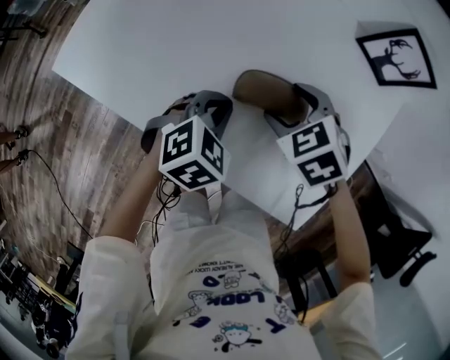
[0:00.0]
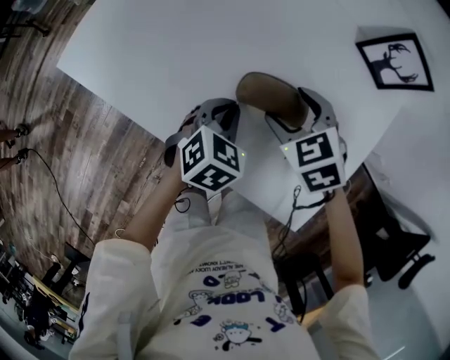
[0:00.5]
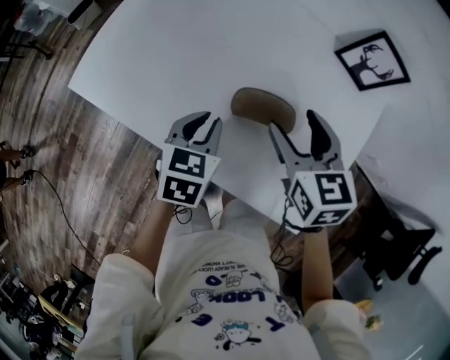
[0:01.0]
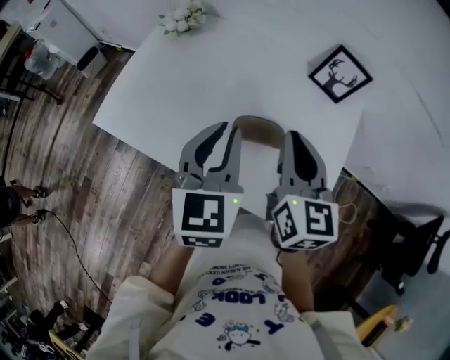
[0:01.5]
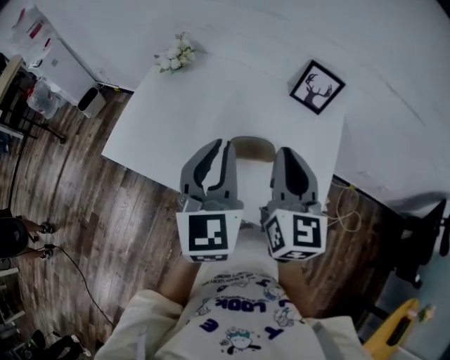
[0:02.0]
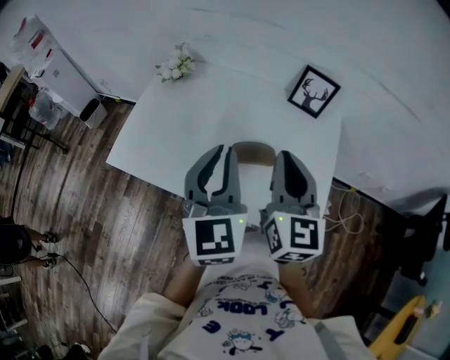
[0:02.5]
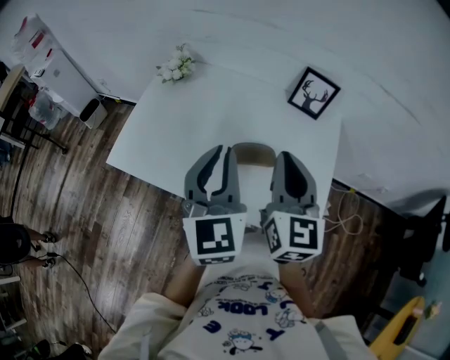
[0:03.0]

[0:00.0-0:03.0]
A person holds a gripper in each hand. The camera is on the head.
0:00.0 to 0:01.5: The two grippers go roughly 25 cm upward. The right gripper points its fingers roughly 50 degrees further upward, and closes its fingers. Meanwhile the left gripper points its fingers some 40 degrees further upward.
0:01.5 to 0:03.0: Both grippers move upward, roughly 5 cm.

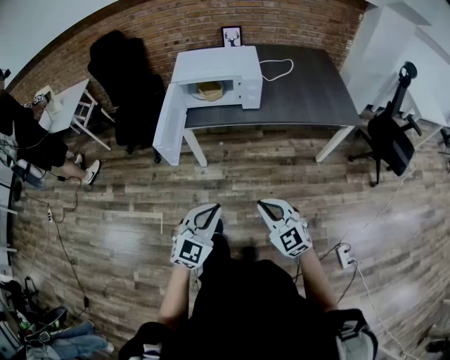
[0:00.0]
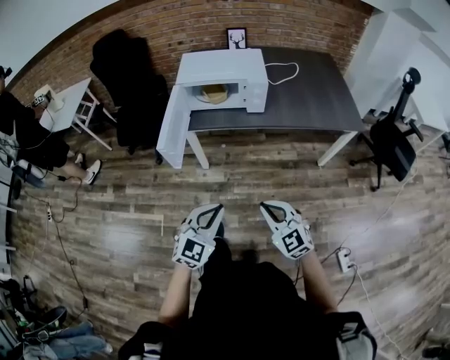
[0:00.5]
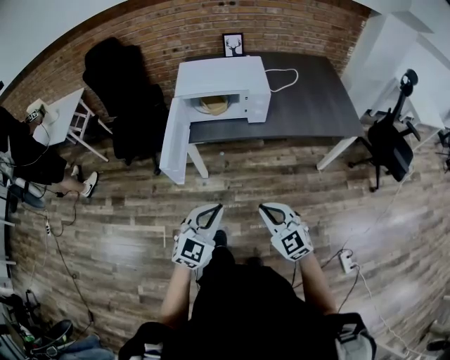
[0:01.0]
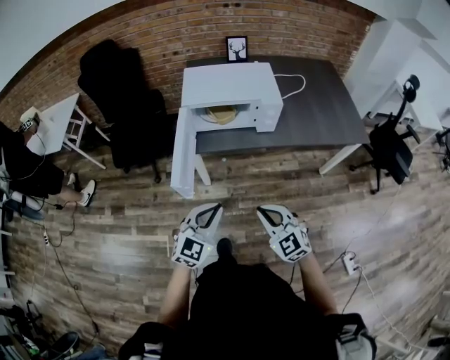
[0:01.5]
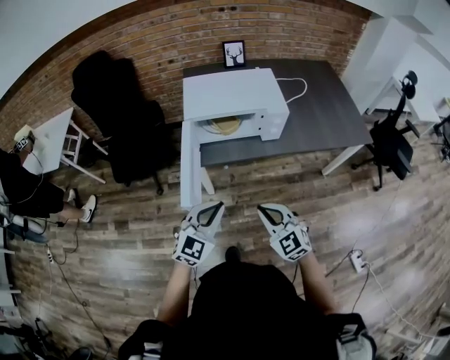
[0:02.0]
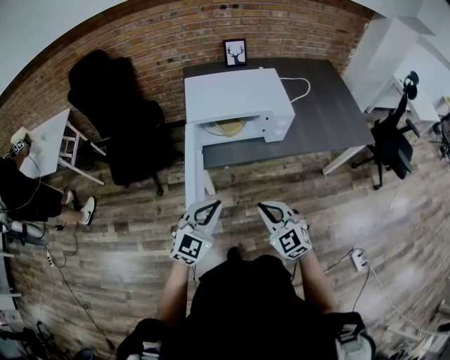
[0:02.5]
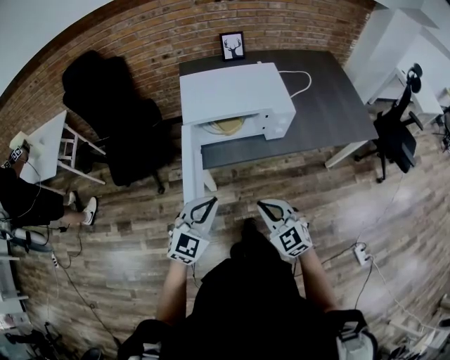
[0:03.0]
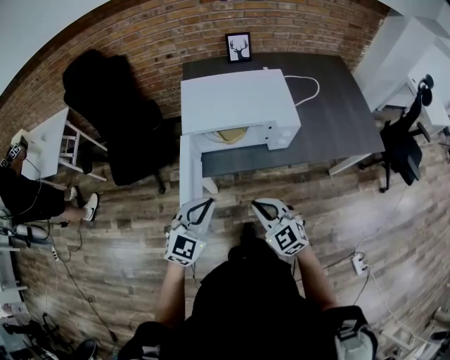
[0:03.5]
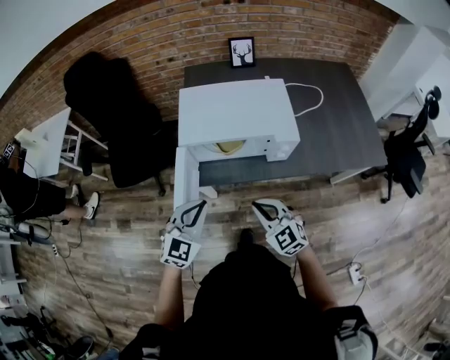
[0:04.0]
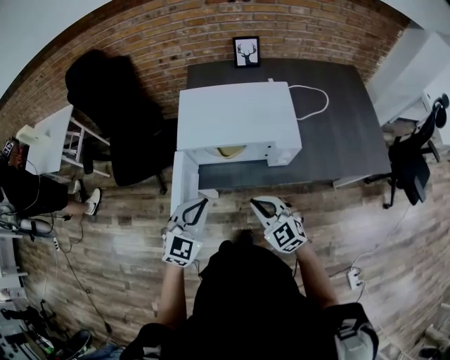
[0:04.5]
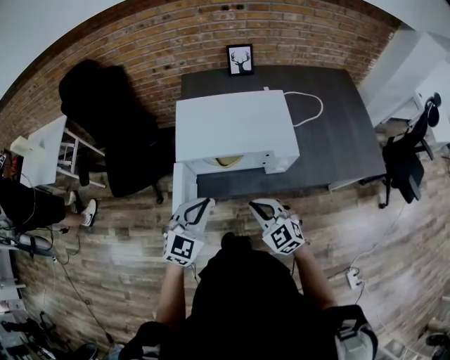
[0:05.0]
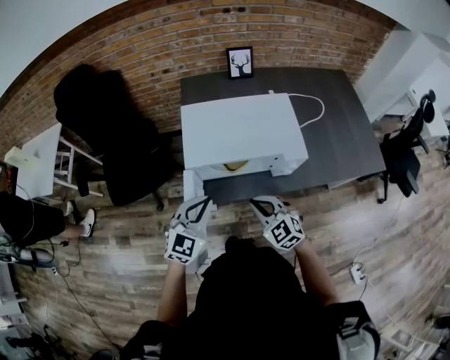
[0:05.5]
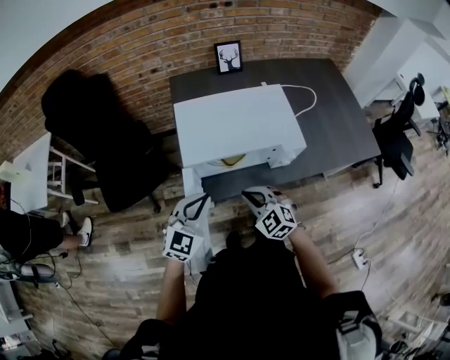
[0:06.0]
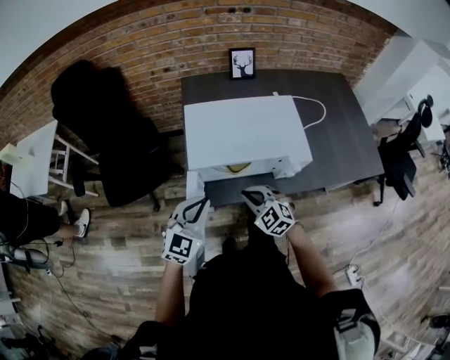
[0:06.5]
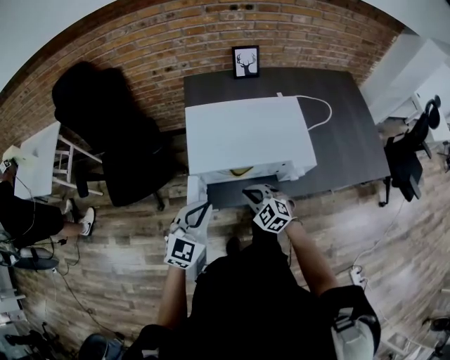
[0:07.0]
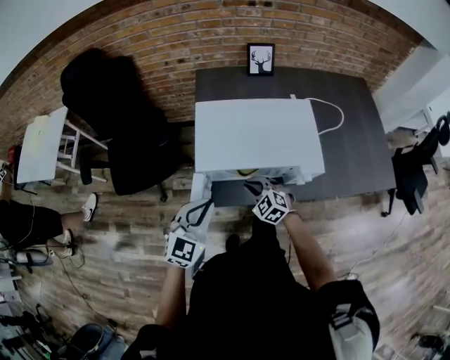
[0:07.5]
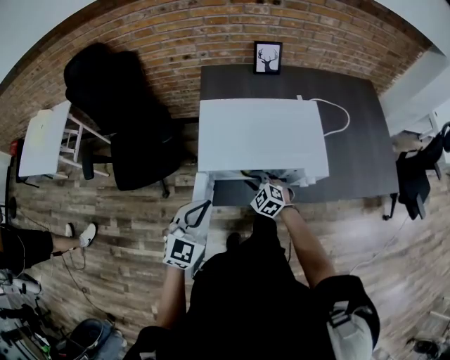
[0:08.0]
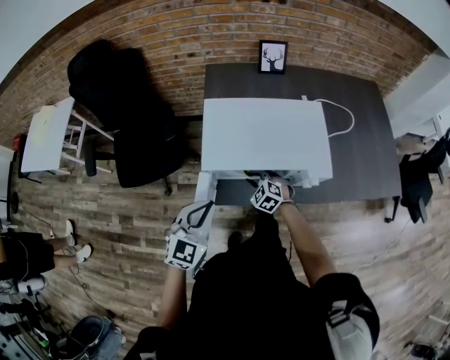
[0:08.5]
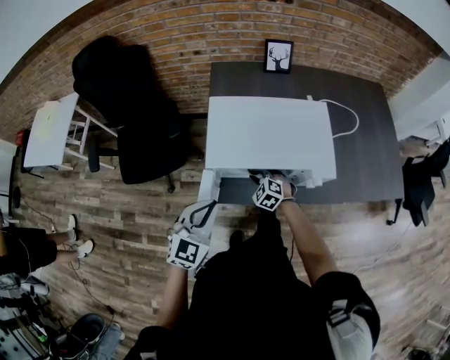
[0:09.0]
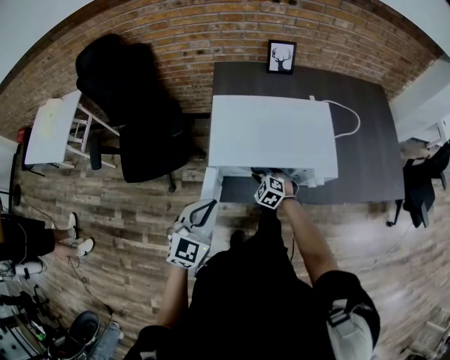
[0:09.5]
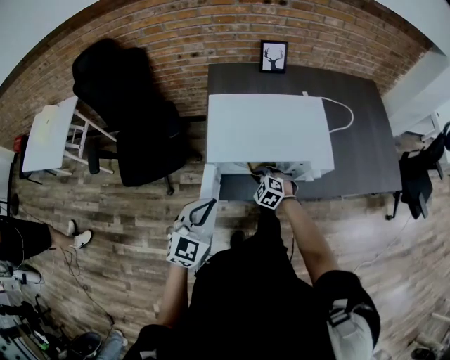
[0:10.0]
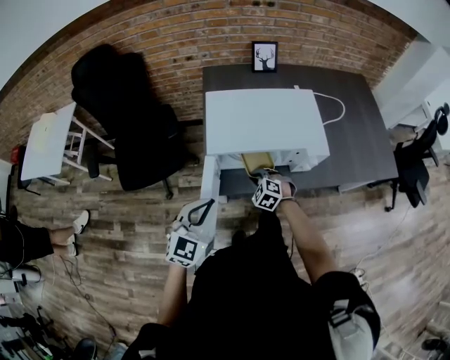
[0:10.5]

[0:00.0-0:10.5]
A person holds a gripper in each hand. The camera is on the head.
0:00.0 to 0:02.0: The grippers both shift forward and to the left by about 25 cm.
0:02.0 to 0:04.0: Both grippers travel together forward, roughly 15 cm.
0:04.0 to 0:06.5: The right gripper is displaced forward, to the left and downward by some 15 cm. Meanwhile the left gripper moves forward, approximately 10 cm.
0:06.5 to 0:08.5: The right gripper travels downward and forward by some 15 cm, and opens up.
0:08.5 to 0:10.5: Both grippers move backward, roughly 5 cm.

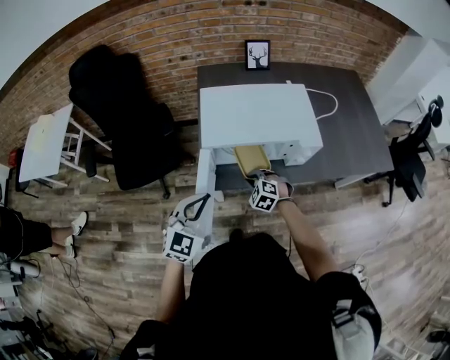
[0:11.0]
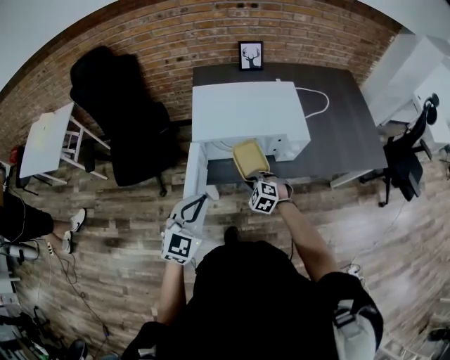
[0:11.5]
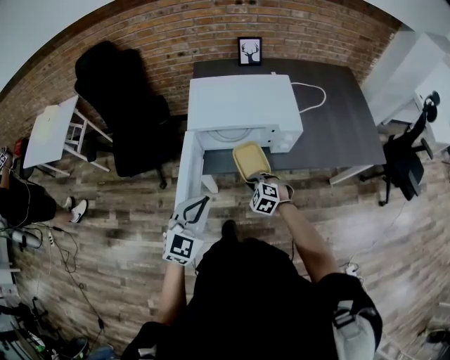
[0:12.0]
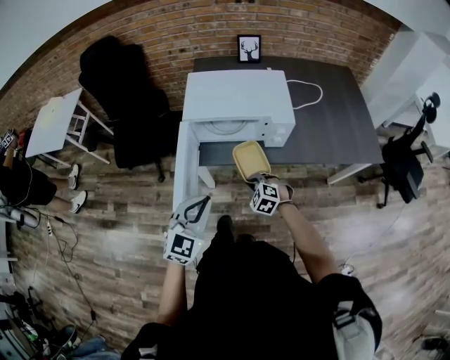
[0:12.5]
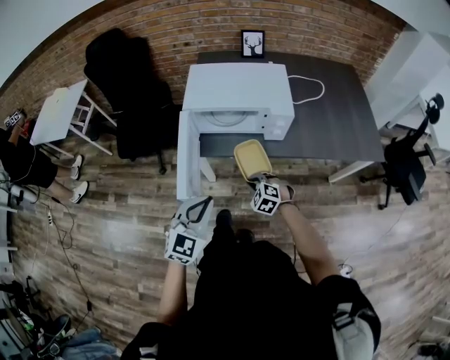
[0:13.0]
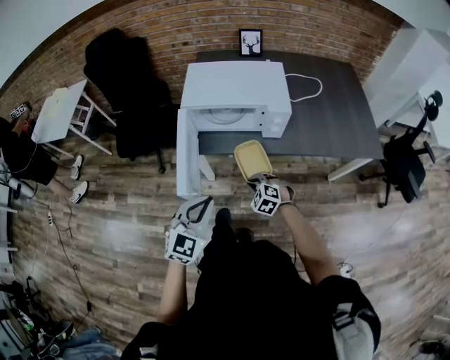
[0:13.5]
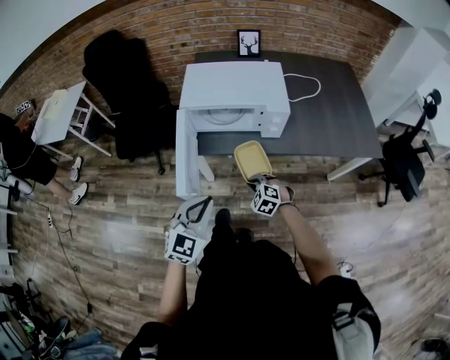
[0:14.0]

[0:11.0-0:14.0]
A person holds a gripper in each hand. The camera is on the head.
0:11.0 to 0:12.5: The grippers both shift backward and to the right by roughly 15 cm.
0:12.5 to 0:14.0: The grippers both shift backward by about 5 cm.

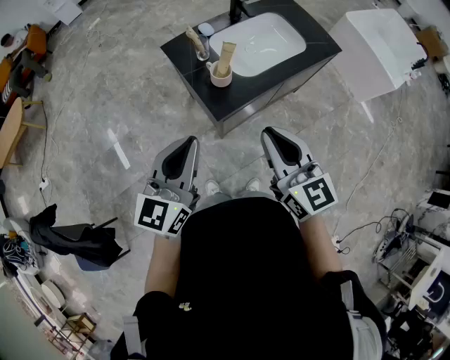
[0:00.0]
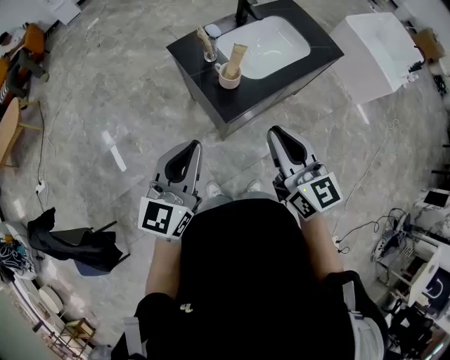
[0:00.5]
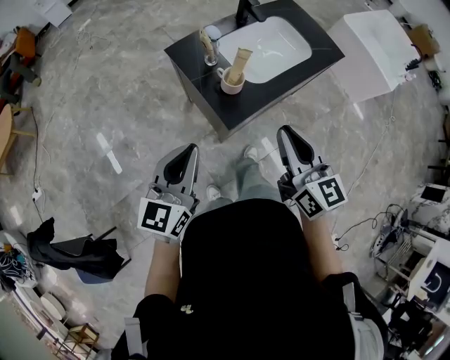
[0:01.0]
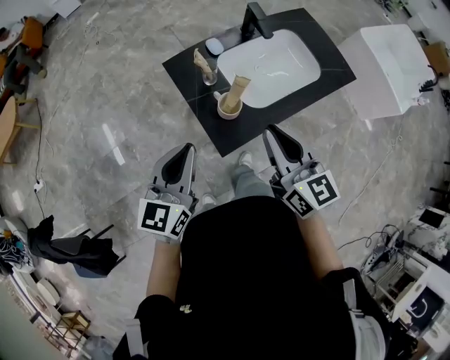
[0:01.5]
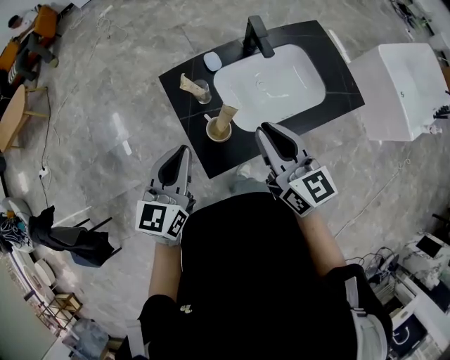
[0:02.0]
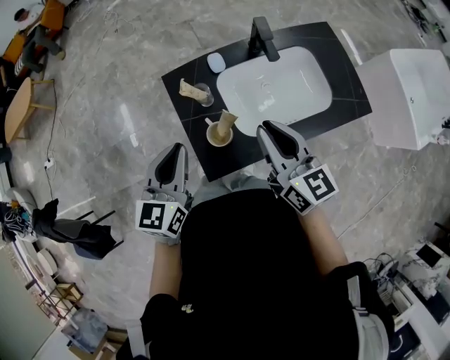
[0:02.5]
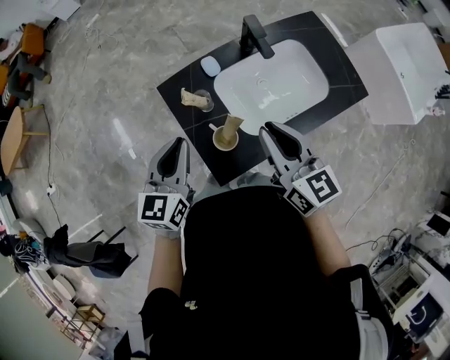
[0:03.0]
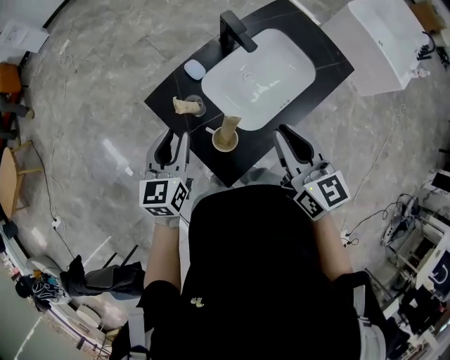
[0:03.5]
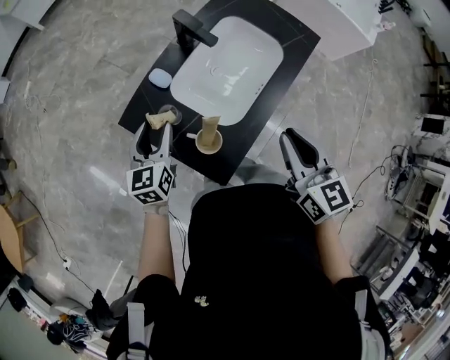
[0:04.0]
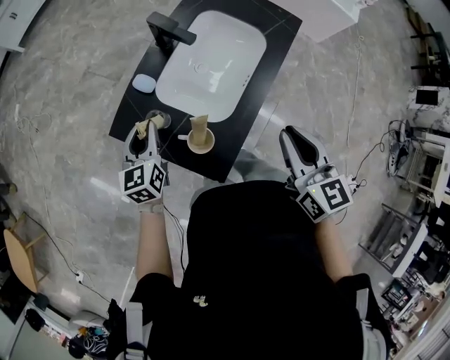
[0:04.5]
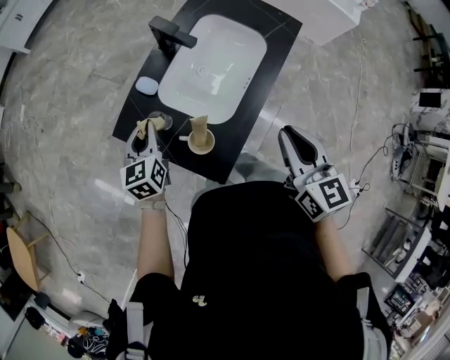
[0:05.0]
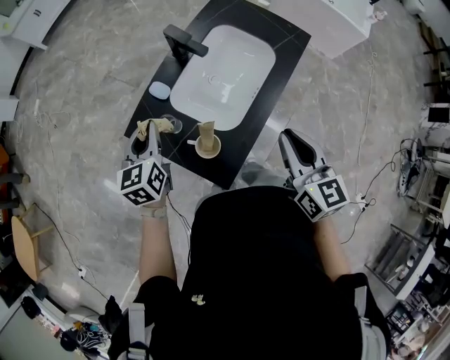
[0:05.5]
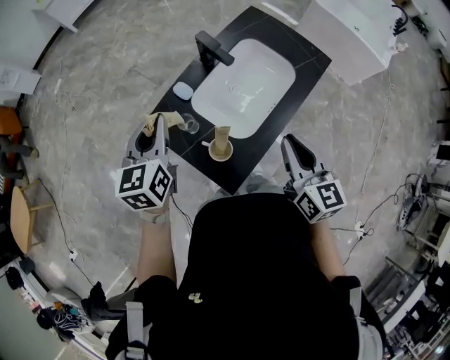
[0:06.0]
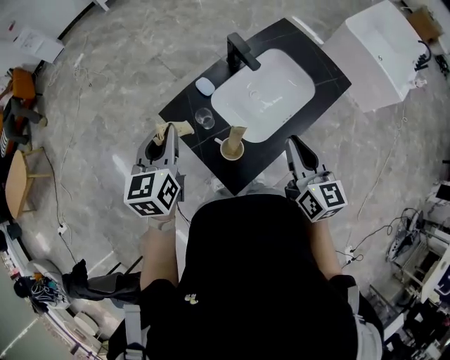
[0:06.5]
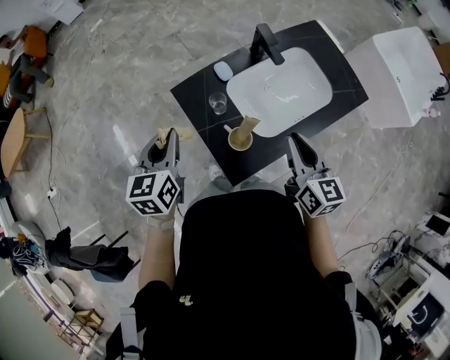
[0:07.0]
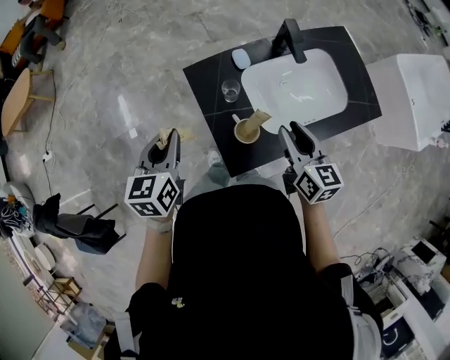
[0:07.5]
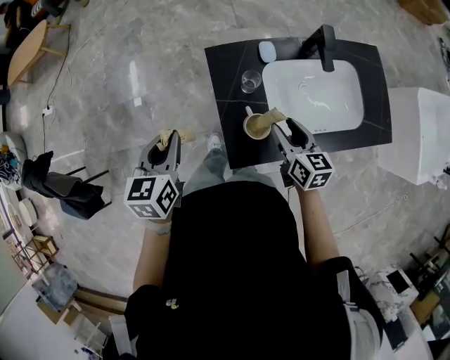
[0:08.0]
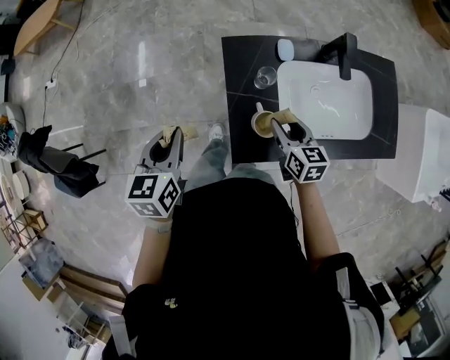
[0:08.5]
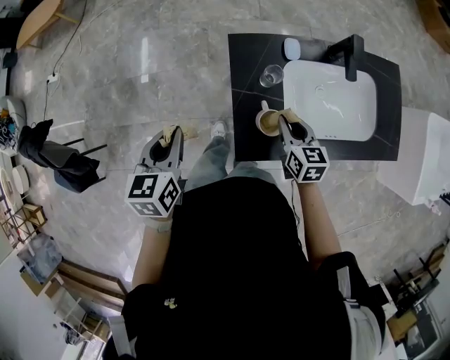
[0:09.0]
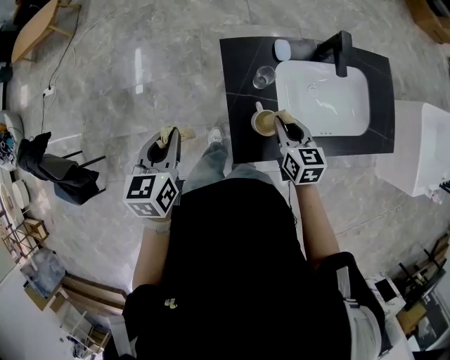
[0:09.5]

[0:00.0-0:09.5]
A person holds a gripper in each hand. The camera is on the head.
0:00.0 to 0:02.0: The grippers both shift forward by approximately 25 cm.
0:02.0 to 0:04.0: The right gripper changes place by approximately 5 cm, and changes its angle by approximately 40 degrees; the left gripper changes place by roughly 20 cm, swivels approximately 20 degrees, and opens up.
0:04.0 to 0:05.5: The left gripper shifts some 5 cm upward, and closes up.
0:05.5 to 0:07.5: The left gripper travels upward and back again, approximately 10 cm each way, and changes its angle by some 30 degrees, while the right gripper shifts by about 15 cm, and rotates roughly 30 degrees.
0:07.5 to 0:09.5: The right gripper moves downward and to the left, approximately 10 cm, and rotates approximately 20 degrees; the left gripper is displaced to the left and backward by some 10 cm.
